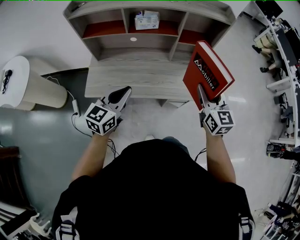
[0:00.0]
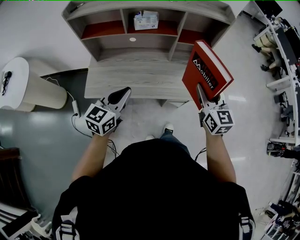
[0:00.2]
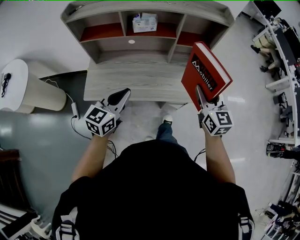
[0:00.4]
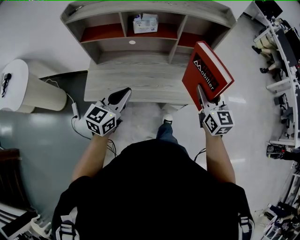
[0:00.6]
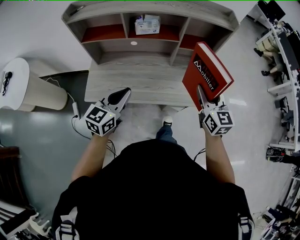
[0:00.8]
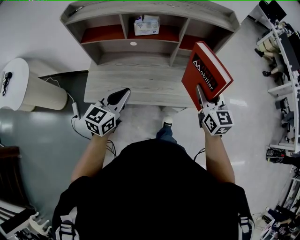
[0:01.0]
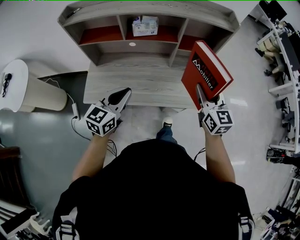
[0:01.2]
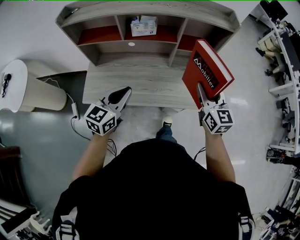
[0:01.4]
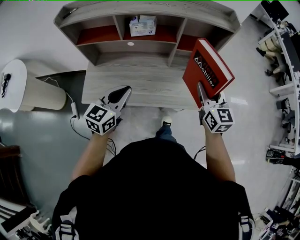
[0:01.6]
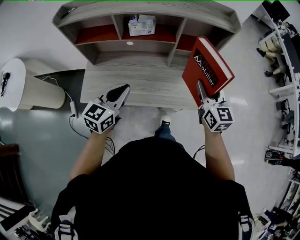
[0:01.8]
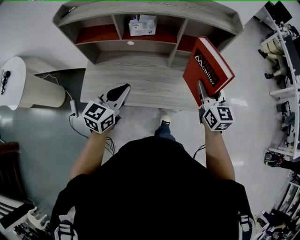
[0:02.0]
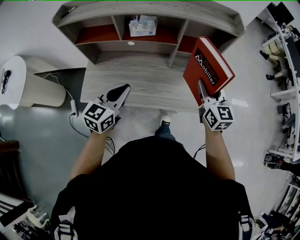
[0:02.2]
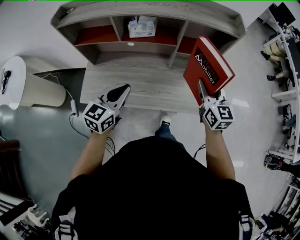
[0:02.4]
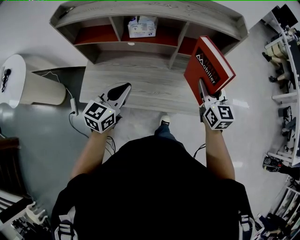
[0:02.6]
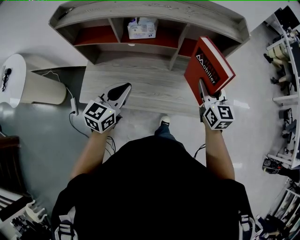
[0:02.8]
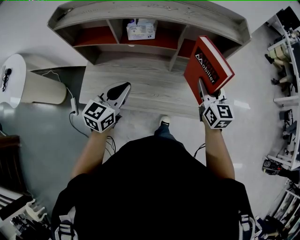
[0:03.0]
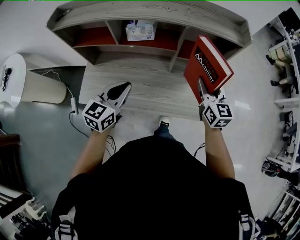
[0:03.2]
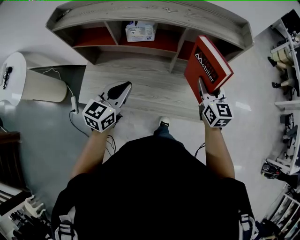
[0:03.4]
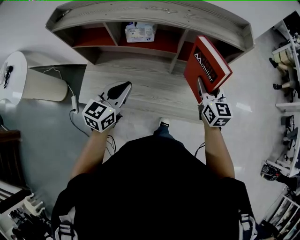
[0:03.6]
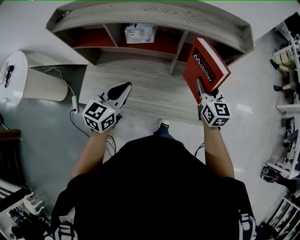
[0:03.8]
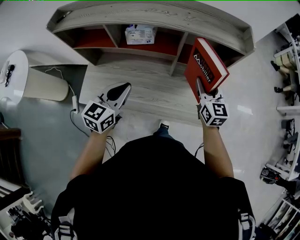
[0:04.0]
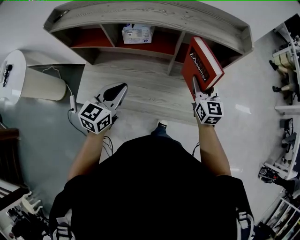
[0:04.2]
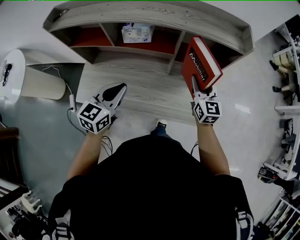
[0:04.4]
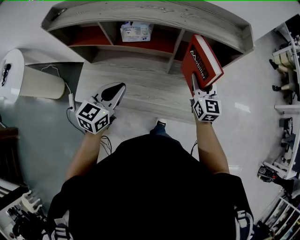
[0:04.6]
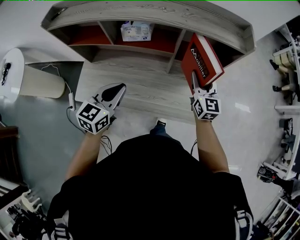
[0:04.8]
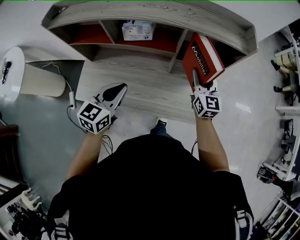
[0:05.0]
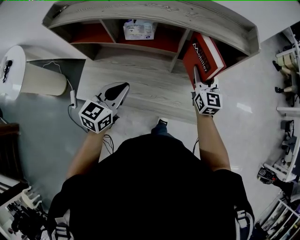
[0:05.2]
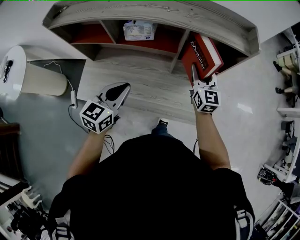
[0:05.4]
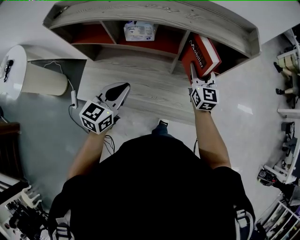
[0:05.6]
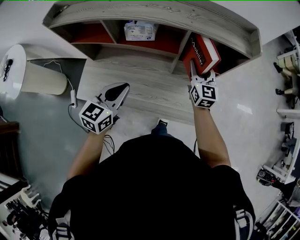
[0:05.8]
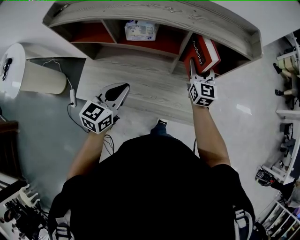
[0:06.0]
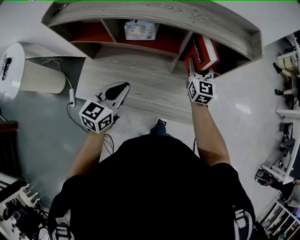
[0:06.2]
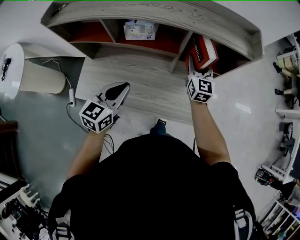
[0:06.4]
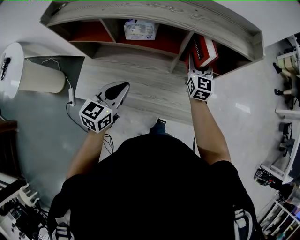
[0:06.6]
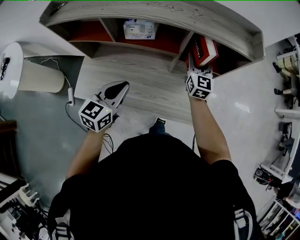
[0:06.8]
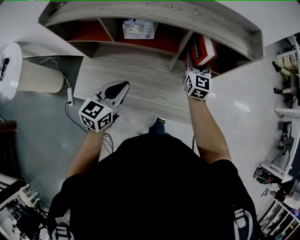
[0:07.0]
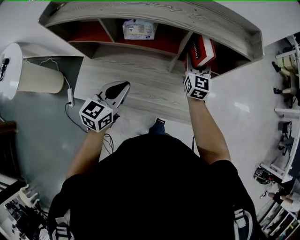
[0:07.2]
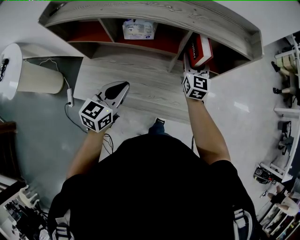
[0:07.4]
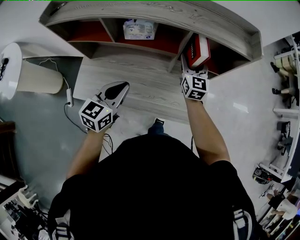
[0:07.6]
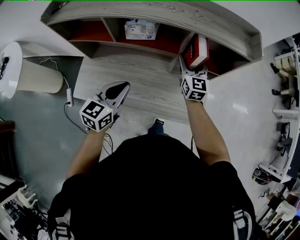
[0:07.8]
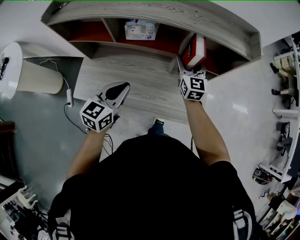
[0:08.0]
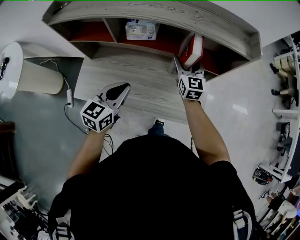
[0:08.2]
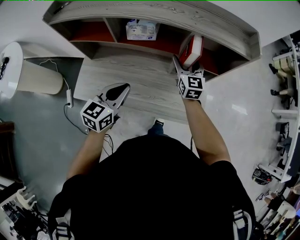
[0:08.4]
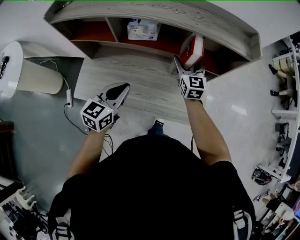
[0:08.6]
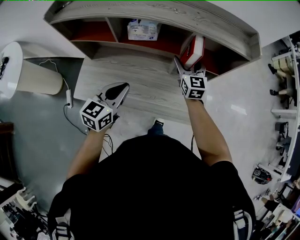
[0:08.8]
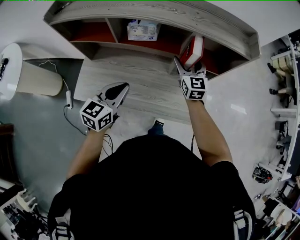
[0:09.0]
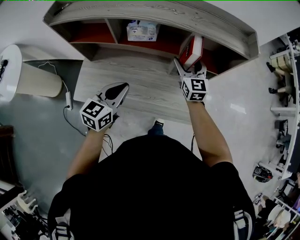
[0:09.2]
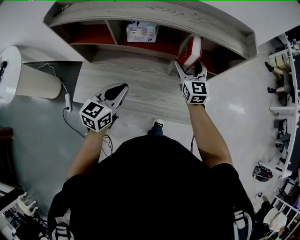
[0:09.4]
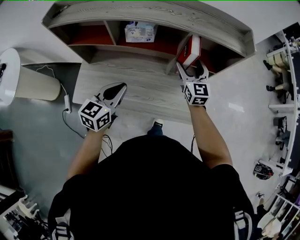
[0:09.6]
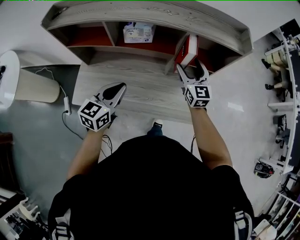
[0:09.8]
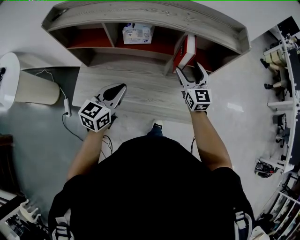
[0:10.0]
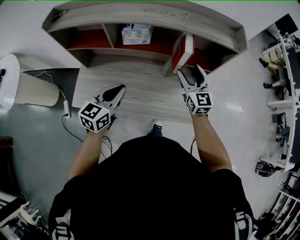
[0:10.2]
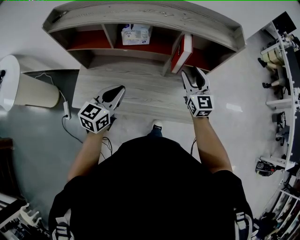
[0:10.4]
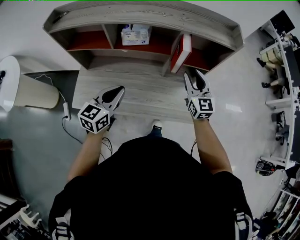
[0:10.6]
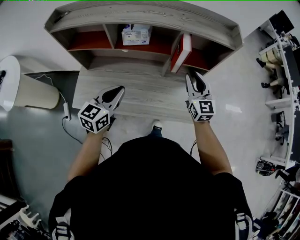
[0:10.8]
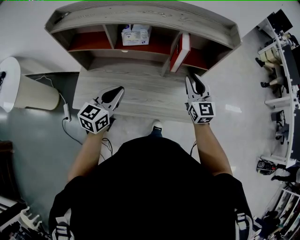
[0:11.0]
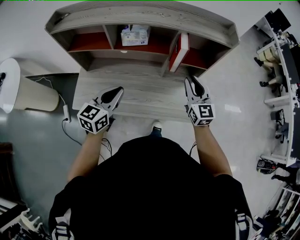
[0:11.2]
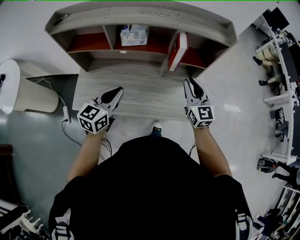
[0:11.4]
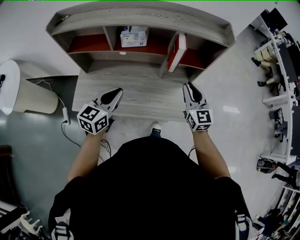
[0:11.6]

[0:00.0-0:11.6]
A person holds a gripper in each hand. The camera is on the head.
0:00.0 to 0:01.4: The grippers both shift forward by approximately 5 cm.
0:01.4 to 0:02.8: Both grippers travel together forward, approximately 10 cm.
0:02.8 to 0:04.4: The right gripper goes roughly 10 cm forward and downward.
0:04.4 to 0:05.8: The right gripper moves forward, approximately 5 cm.
0:05.8 to 0:07.2: There are only small adjustments of the grippers.
0:07.2 to 0:08.8: The right gripper moves some 5 cm, and opens.
0:08.8 to 0:10.2: The right gripper goes some 10 cm backward.
0:10.2 to 0:11.6: The right gripper is displaced backward by approximately 10 cm, and closes up.

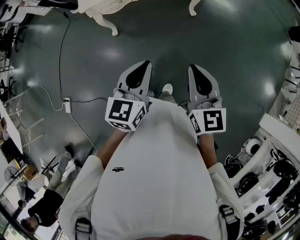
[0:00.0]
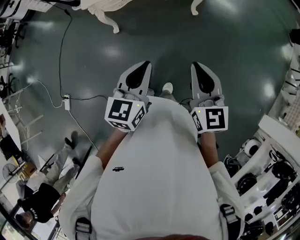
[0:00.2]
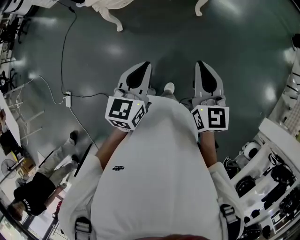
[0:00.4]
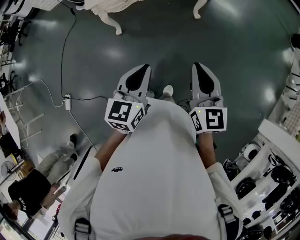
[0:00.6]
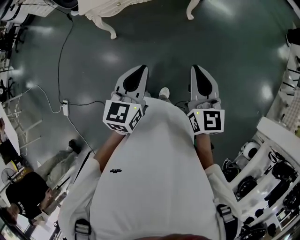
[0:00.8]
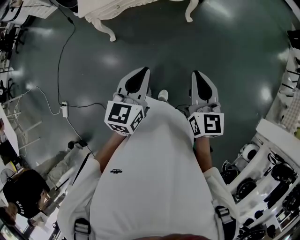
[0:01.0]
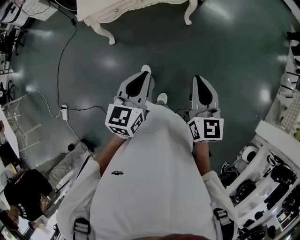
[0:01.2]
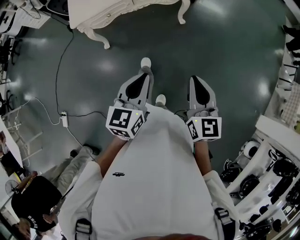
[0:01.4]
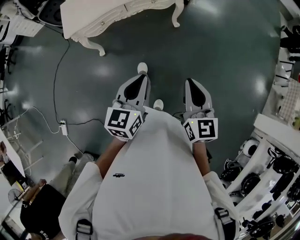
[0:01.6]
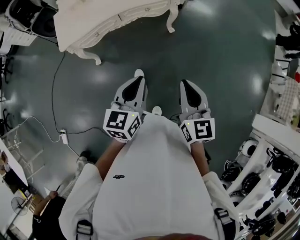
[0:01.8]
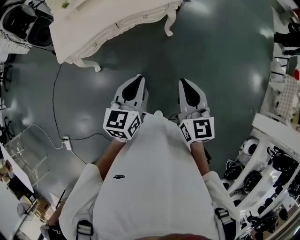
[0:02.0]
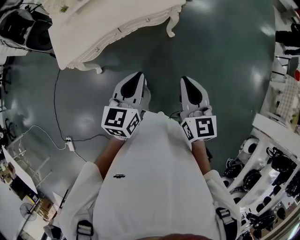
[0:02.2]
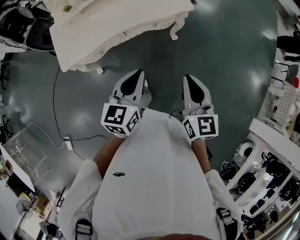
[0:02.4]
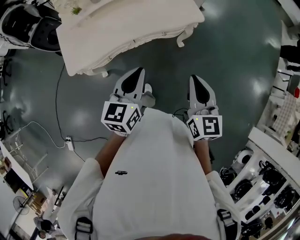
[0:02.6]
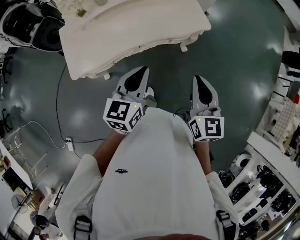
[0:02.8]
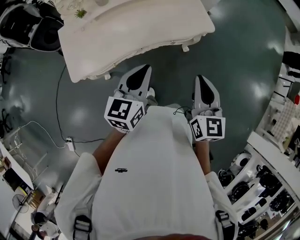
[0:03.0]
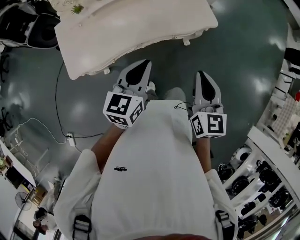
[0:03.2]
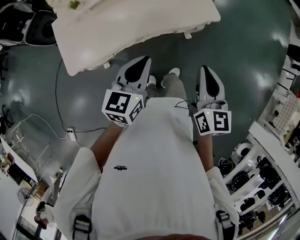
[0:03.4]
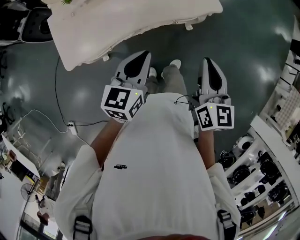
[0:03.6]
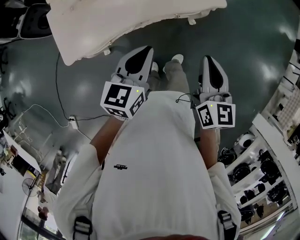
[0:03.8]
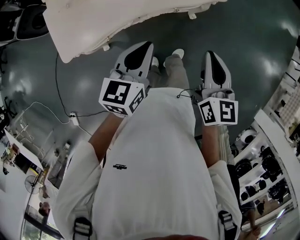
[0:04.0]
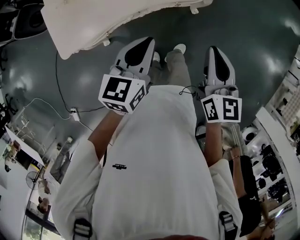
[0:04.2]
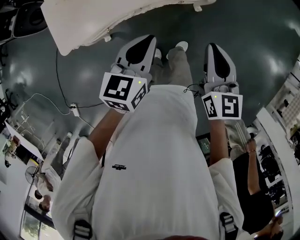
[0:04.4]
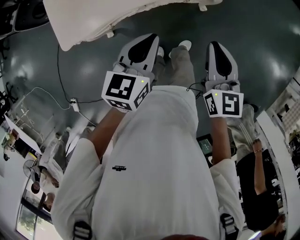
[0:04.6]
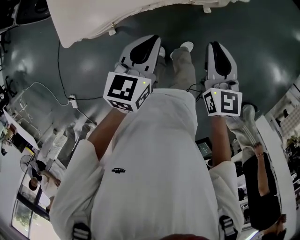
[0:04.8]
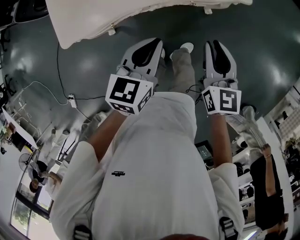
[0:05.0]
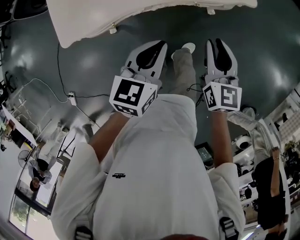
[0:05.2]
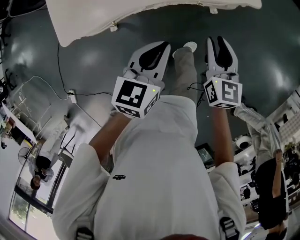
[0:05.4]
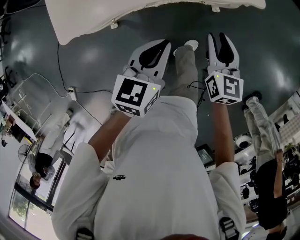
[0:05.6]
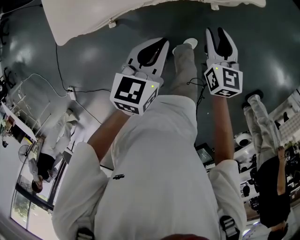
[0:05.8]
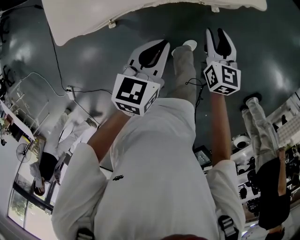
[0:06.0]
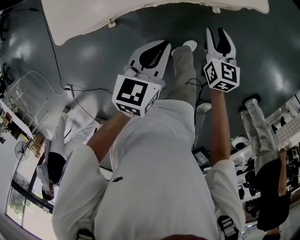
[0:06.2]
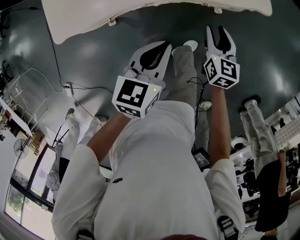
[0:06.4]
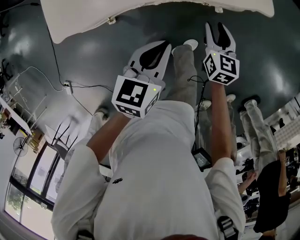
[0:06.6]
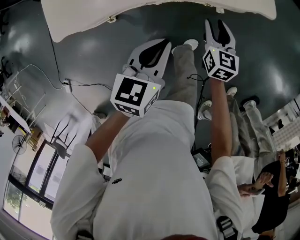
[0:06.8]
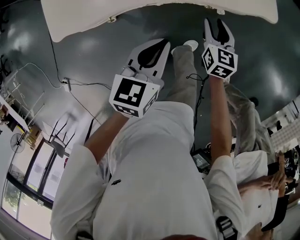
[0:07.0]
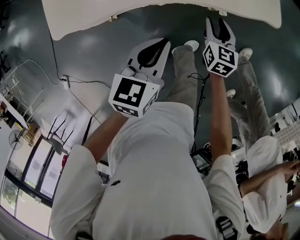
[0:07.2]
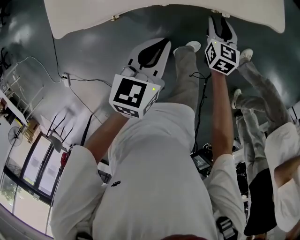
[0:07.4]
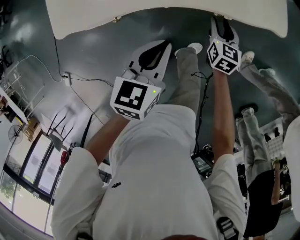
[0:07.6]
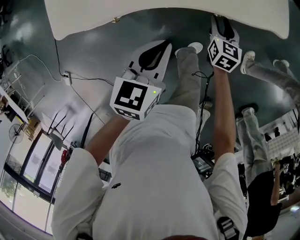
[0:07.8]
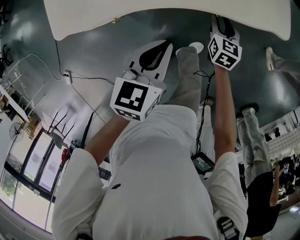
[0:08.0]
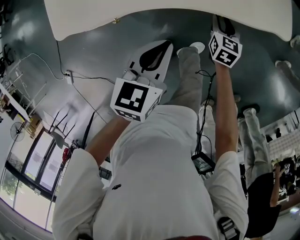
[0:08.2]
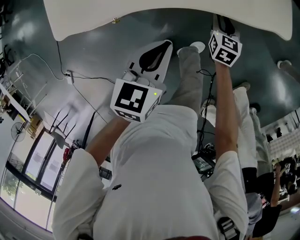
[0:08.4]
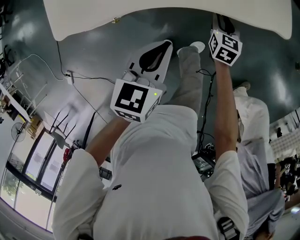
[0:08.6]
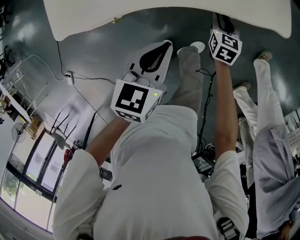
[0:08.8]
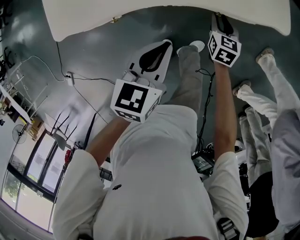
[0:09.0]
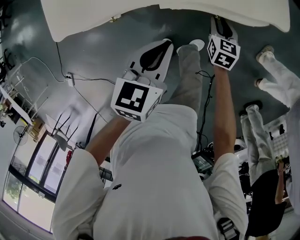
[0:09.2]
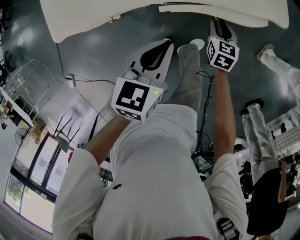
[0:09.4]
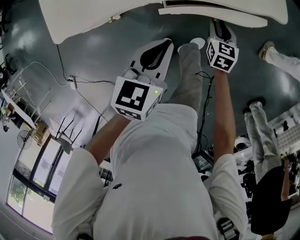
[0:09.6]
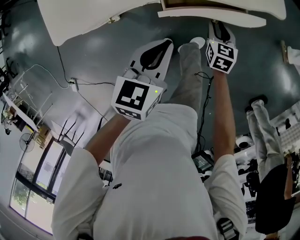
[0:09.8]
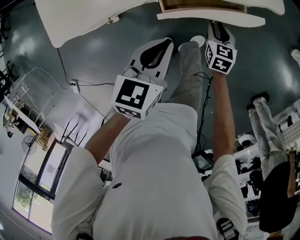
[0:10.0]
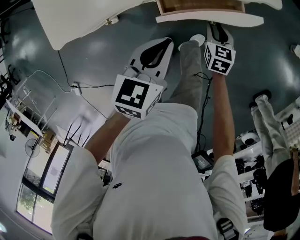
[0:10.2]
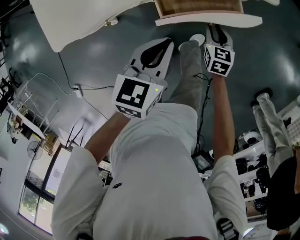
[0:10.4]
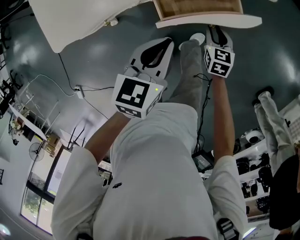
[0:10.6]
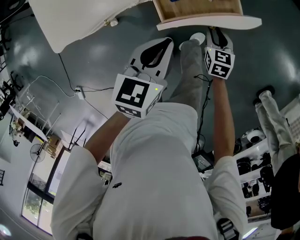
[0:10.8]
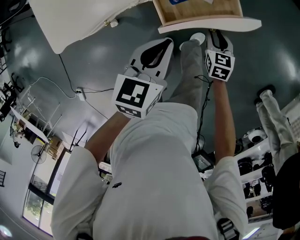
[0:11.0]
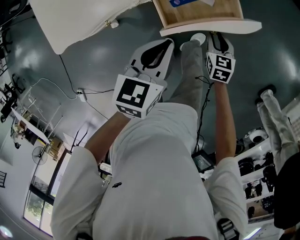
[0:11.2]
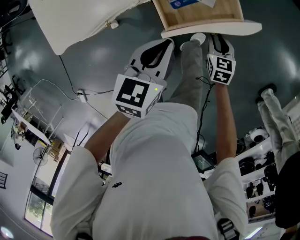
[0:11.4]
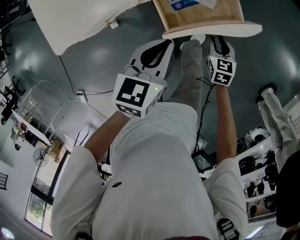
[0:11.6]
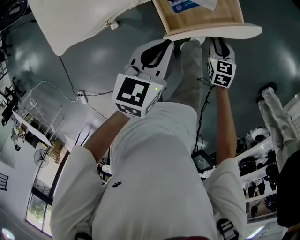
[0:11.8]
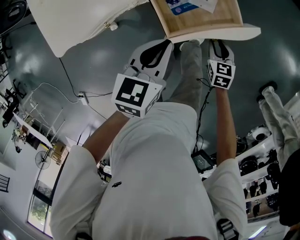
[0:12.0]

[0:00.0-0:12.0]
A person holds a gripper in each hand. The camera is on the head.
0:00.0 to 0:01.6: The left gripper shifts roughly 5 cm forward; the right gripper is displaced to the right and forward by some 10 cm.
0:01.6 to 0:03.0: Both grippers are carried forward, some 40 cm.
0:03.0 to 0:04.4: Both grippers move downward, about 10 cm.
0:04.4 to 0:06.0: The left gripper heads downward, covering some 10 cm. The right gripper shifts some 20 cm downward and forward, and opens its fingers.
0:06.0 to 0:07.6: The left gripper moves roughly 5 cm. Meanwhile the right gripper shifts some 15 cm downward and forward.
0:07.6 to 0:09.0: The grippers make only small movements.
0:09.0 to 0:10.4: The right gripper heads backward, covering approximately 10 cm.
0:10.4 to 0:12.0: The right gripper shifts some 10 cm backward and to the right.
